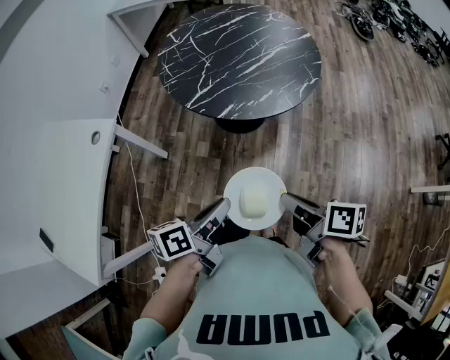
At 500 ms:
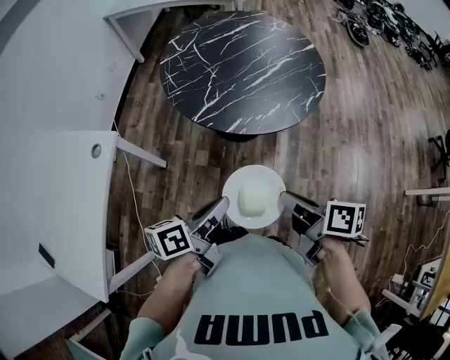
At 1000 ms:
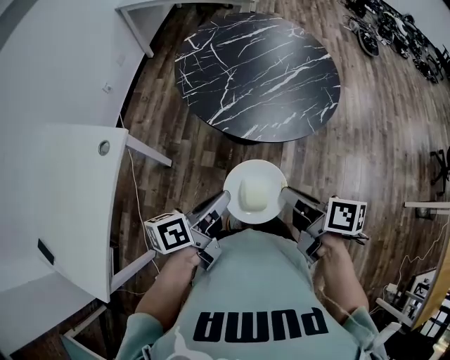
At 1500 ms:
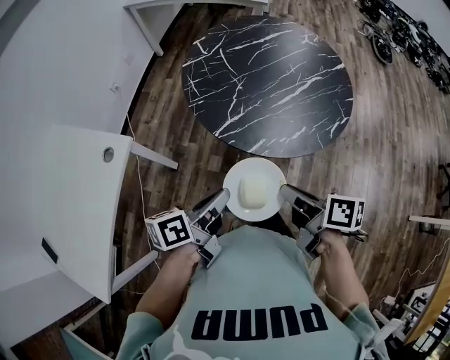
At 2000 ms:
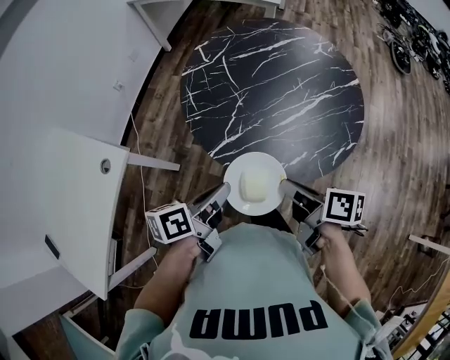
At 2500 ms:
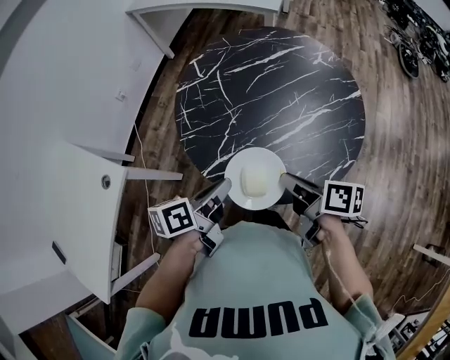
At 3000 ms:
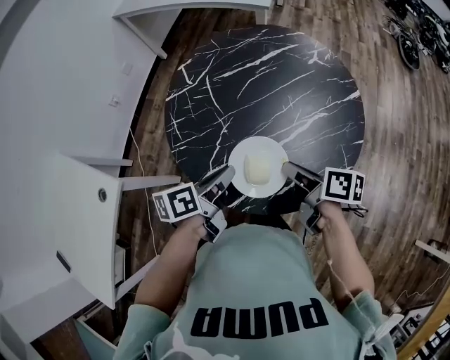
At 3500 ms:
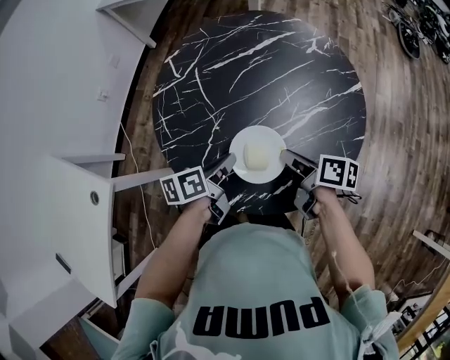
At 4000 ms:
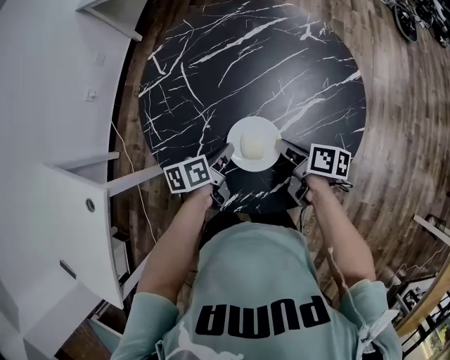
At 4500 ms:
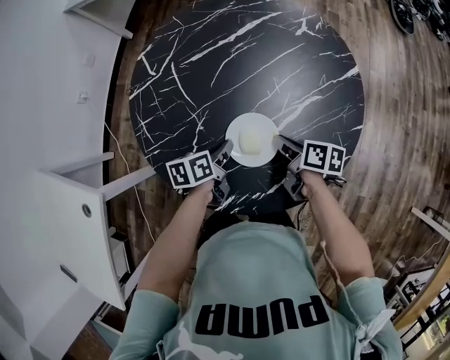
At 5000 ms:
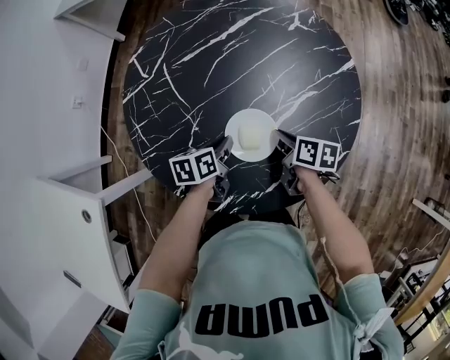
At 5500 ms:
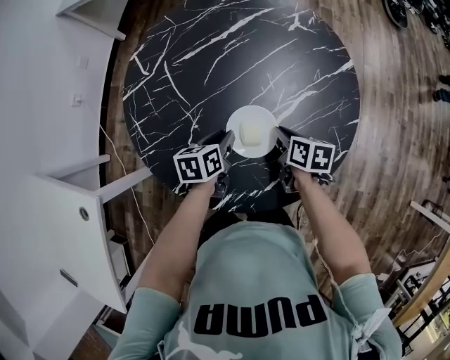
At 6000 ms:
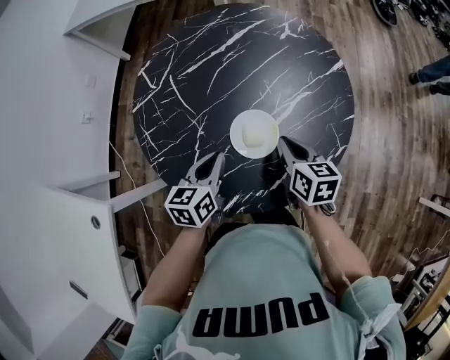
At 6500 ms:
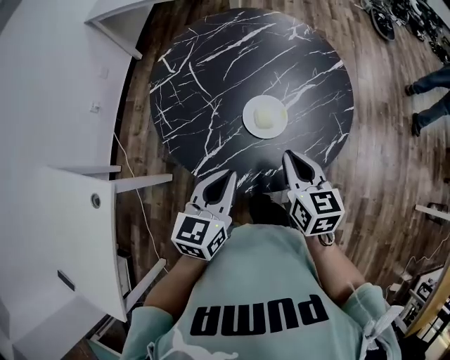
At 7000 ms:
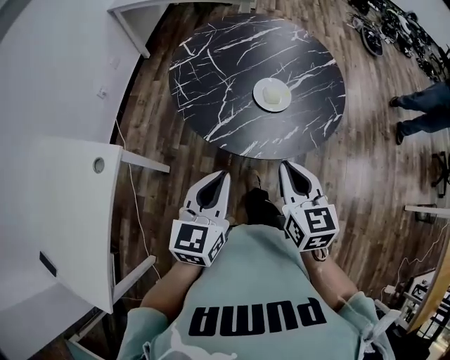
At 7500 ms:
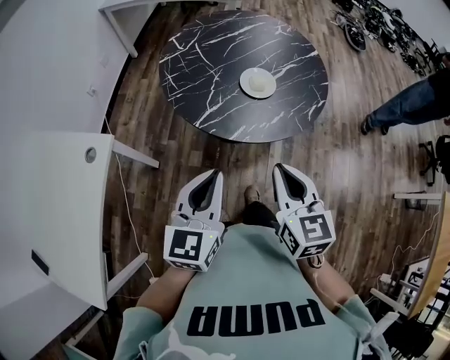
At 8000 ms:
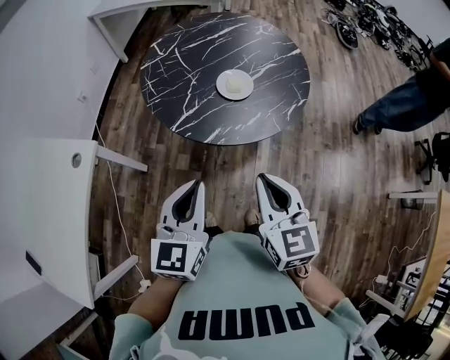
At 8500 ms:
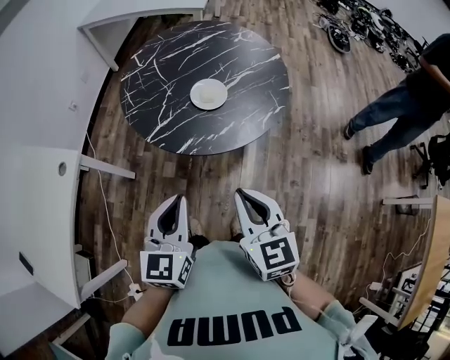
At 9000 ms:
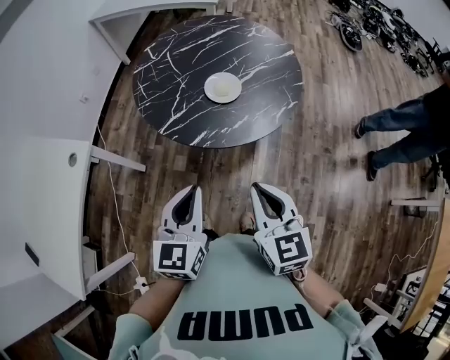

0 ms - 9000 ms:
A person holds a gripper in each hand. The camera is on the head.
0 ms - 2000 ms: Both grippers travel together forward, approximately 30 cm.
2000 ms - 4500 ms: The grippers both shift forward, downward and to the right by approximately 35 cm. The left gripper rotates approximately 20 degrees.
4500 ms - 7000 ms: The grippers both shift backward and upward by roughly 40 cm. The left gripper rolls clockwise, seen from behind, by about 40 degrees. The right gripper twists about 50 degrees counterclockwise, seen from behind.
7000 ms - 9000 ms: The left gripper heads to the right and backward, covering roughly 15 cm. Meanwhile the right gripper moves backward and to the right, some 15 cm.

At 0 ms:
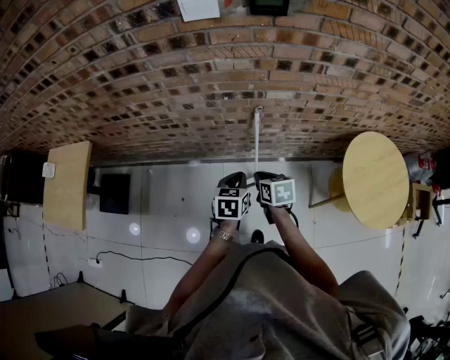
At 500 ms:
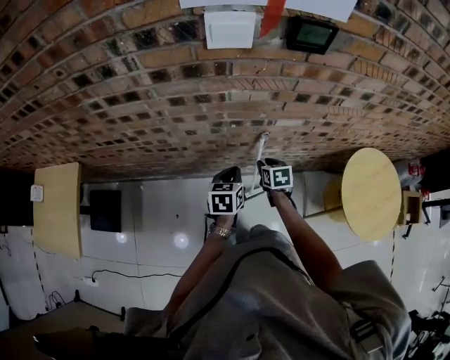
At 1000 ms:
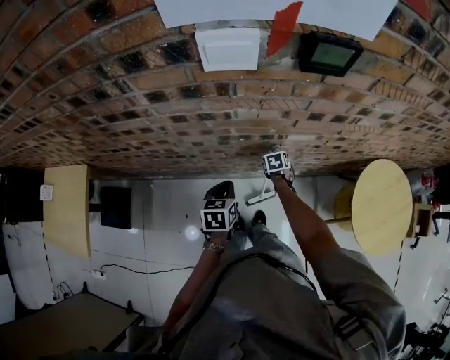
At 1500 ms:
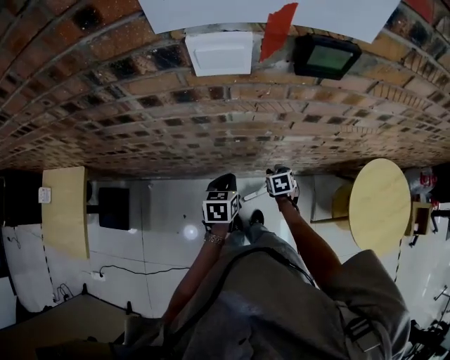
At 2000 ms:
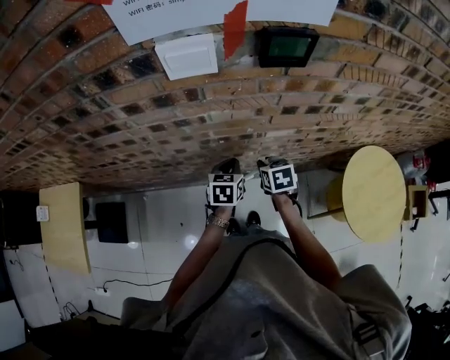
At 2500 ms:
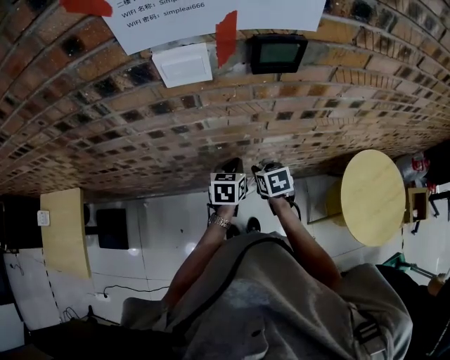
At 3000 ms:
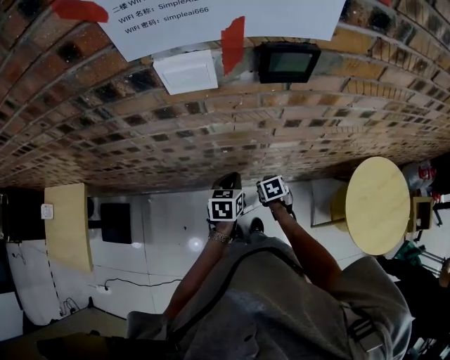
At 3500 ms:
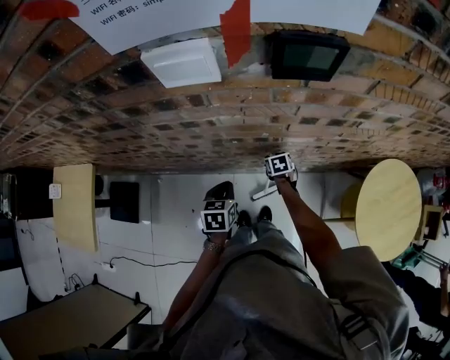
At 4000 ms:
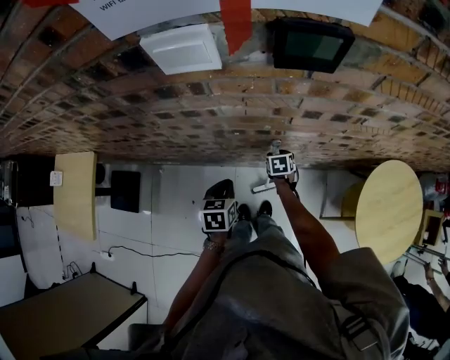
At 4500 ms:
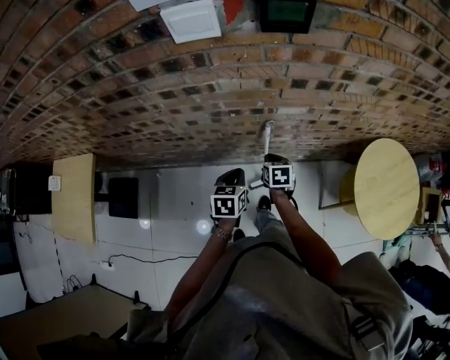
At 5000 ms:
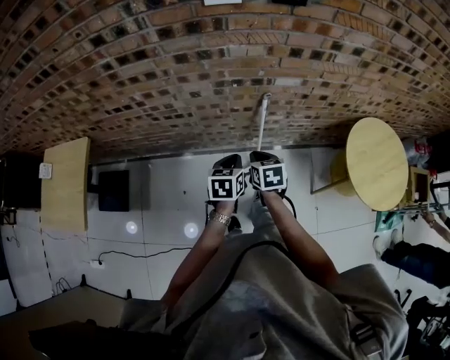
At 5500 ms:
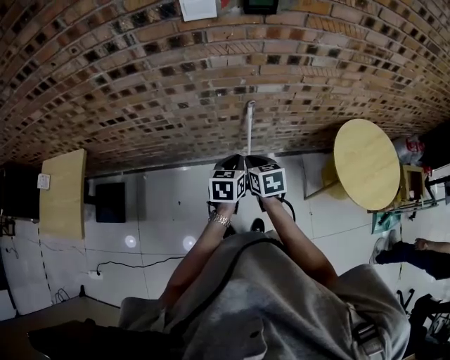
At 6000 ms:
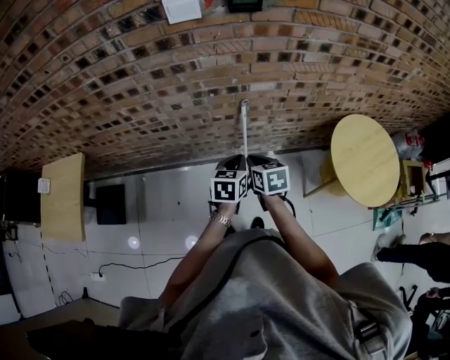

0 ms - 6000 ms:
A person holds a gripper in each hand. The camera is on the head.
0 ms - 2000 ms: Both grippers move forward, about 20 cm. The right gripper opens up.
2000 ms - 4000 ms: The left gripper goes approximately 10 cm backward and to the left. Meanwhile the right gripper heads downward, covering some 20 cm.
4000 ms - 6000 ms: The left gripper travels backward, to the right and upward by roughly 20 cm, and rotates roughly 20 degrees, while the right gripper shifts roughly 35 cm backward and upward, turns by some 20 degrees, and closes its fingers.

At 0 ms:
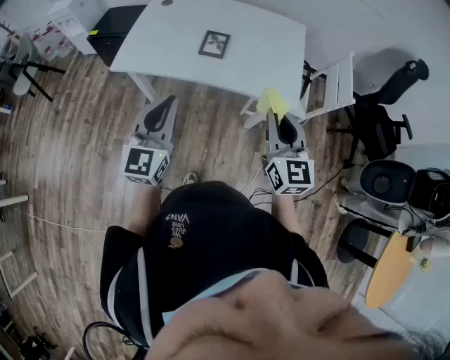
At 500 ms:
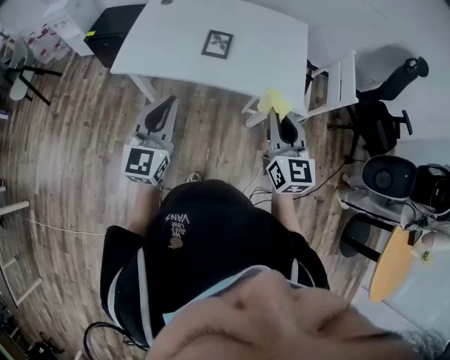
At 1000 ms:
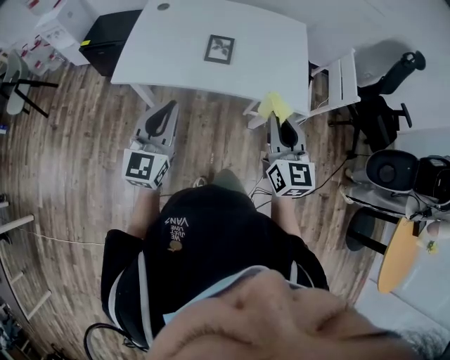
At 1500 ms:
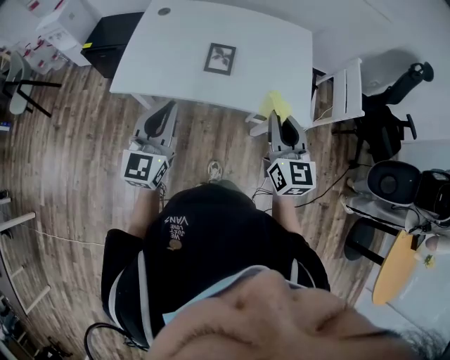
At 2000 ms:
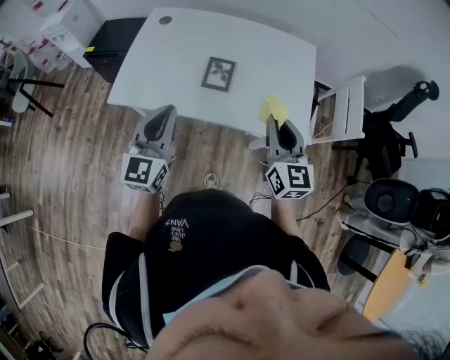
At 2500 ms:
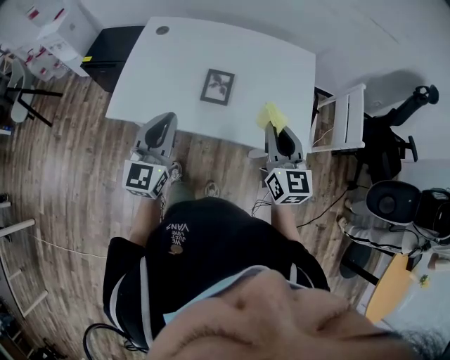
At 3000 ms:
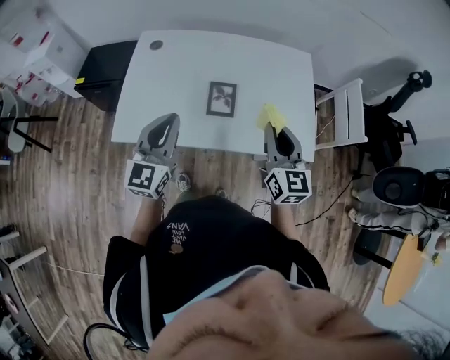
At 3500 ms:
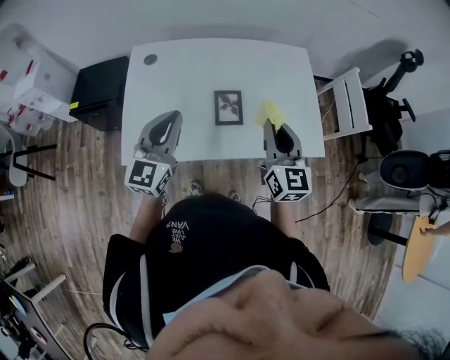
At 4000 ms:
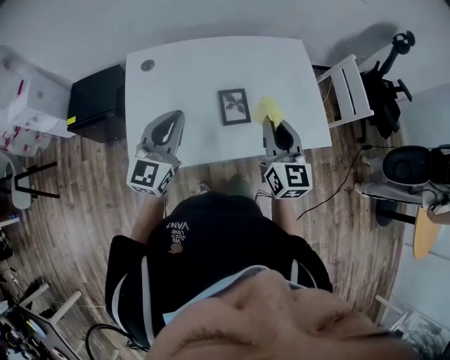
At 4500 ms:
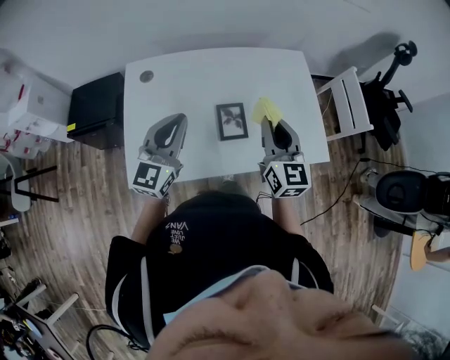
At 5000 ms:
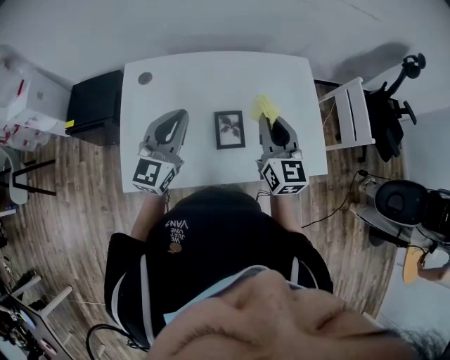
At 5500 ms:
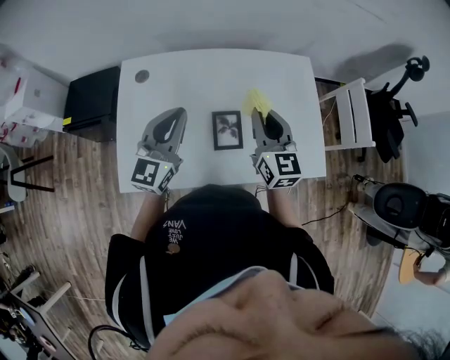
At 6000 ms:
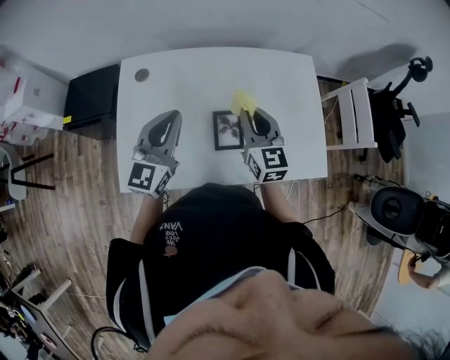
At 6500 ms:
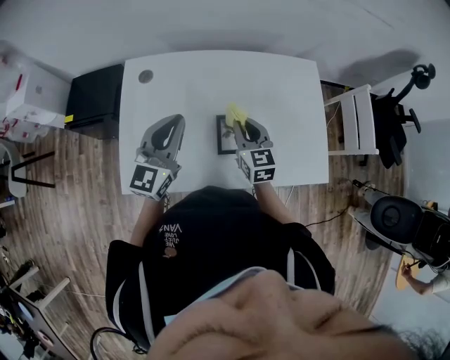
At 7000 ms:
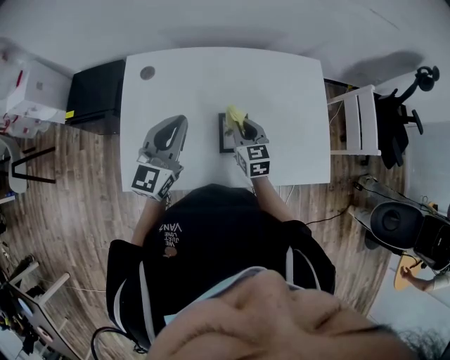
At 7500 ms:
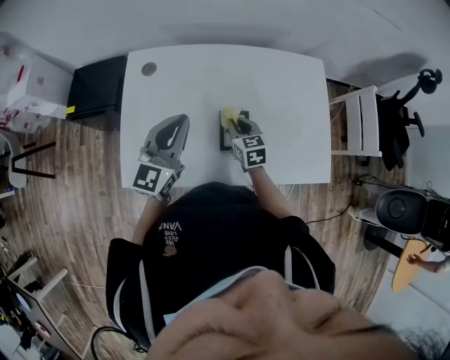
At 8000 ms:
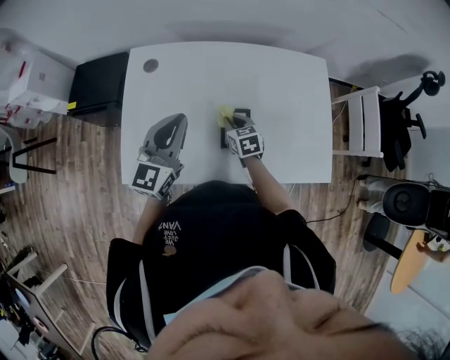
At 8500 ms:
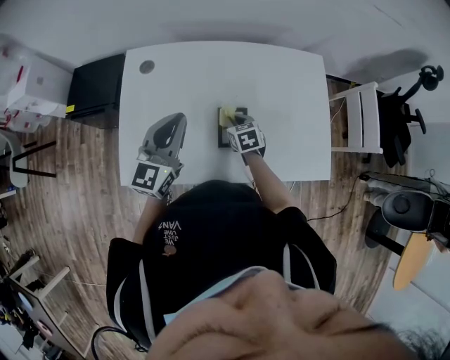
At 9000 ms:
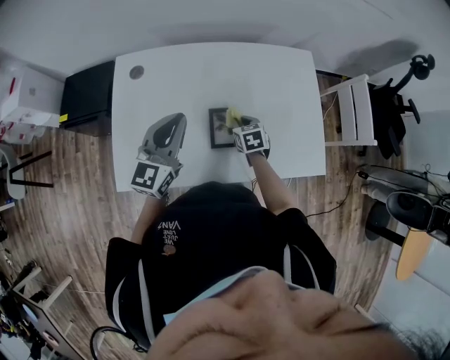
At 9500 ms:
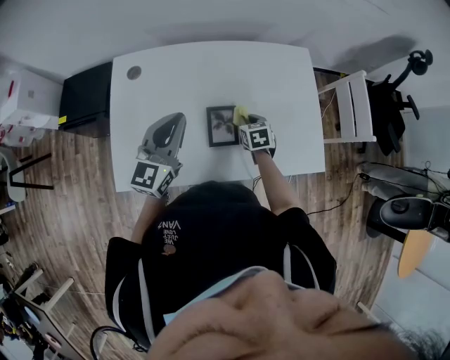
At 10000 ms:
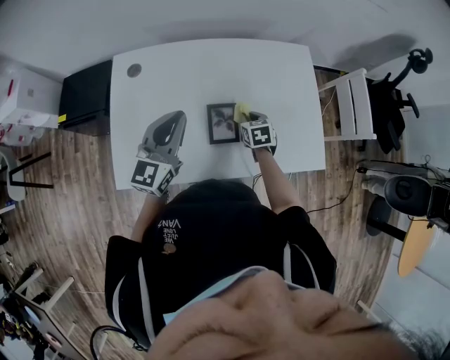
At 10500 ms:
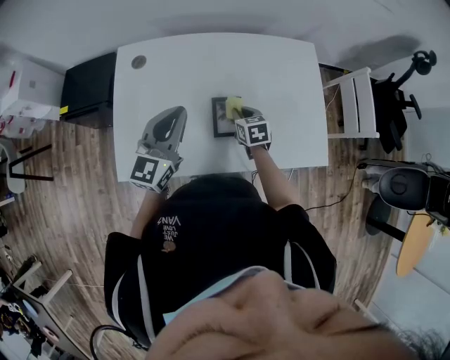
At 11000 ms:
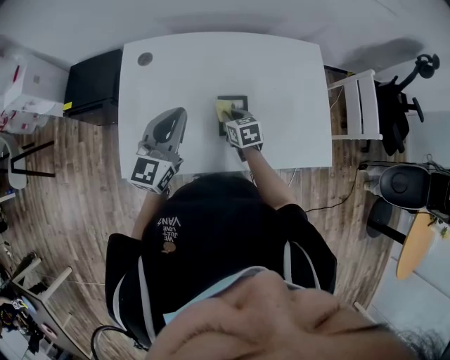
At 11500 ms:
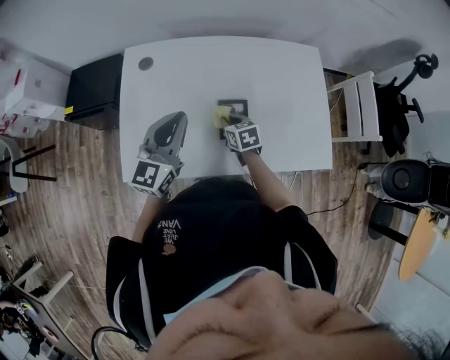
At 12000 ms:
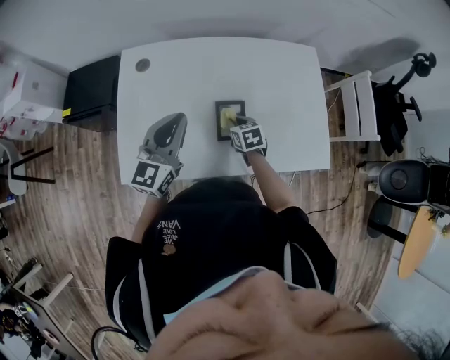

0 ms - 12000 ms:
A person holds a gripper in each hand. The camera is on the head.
0 ms - 2000 ms: Both grippers move forward, roughly 15 cm.
2000 ms - 4000 ms: The left gripper heads forward and to the left, covering approximately 20 cm, and turns by roughly 20 degrees, while the right gripper shifts some 15 cm to the left and forward.
4000 ms - 6000 ms: The grippers both shift forward by some 15 cm.
6000 ms - 8000 ms: The right gripper heads downward, covering roughly 20 cm, and tips its fingers downward by about 30 degrees.
8000 ms - 10000 ms: The right gripper moves to the right, approximately 10 cm.
10000 ms - 12000 ms: The right gripper heads to the left, covering approximately 10 cm.
